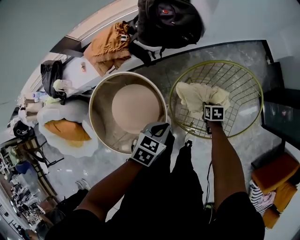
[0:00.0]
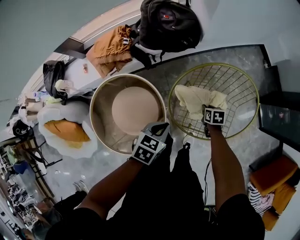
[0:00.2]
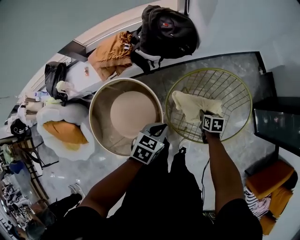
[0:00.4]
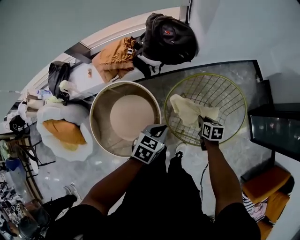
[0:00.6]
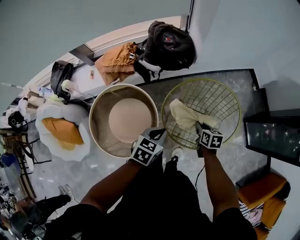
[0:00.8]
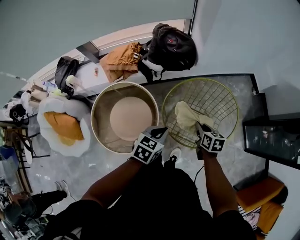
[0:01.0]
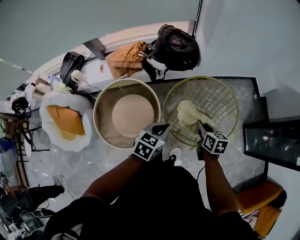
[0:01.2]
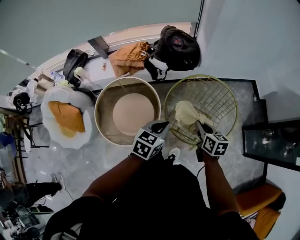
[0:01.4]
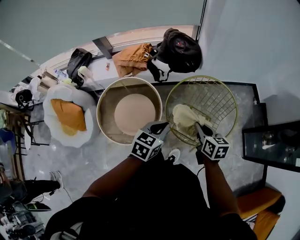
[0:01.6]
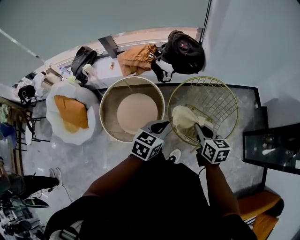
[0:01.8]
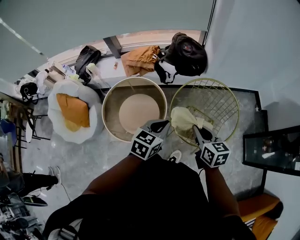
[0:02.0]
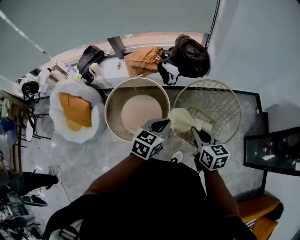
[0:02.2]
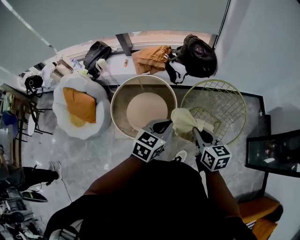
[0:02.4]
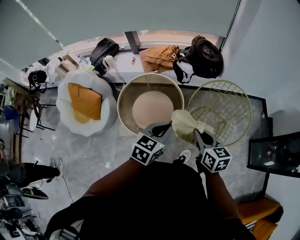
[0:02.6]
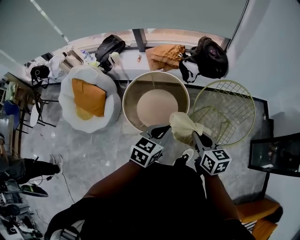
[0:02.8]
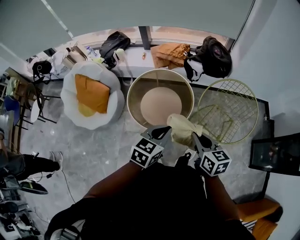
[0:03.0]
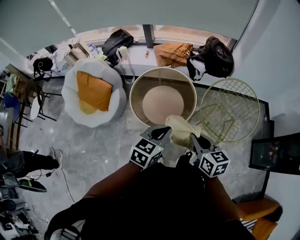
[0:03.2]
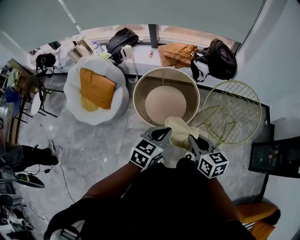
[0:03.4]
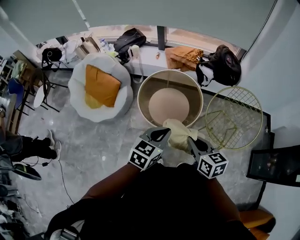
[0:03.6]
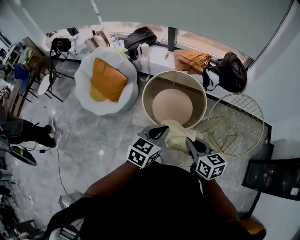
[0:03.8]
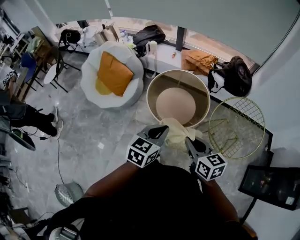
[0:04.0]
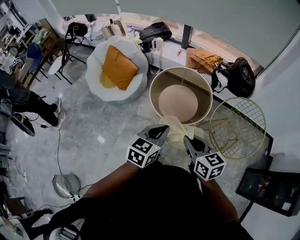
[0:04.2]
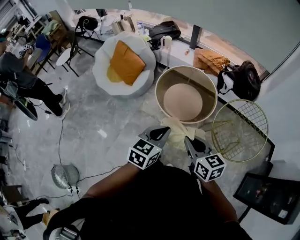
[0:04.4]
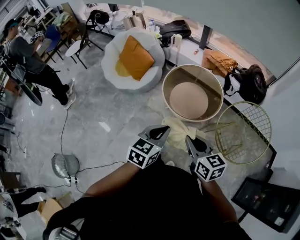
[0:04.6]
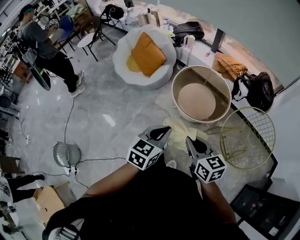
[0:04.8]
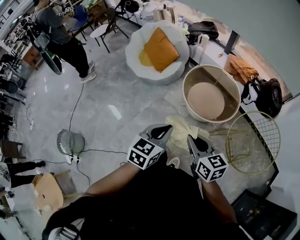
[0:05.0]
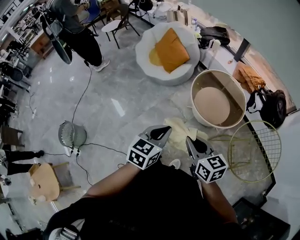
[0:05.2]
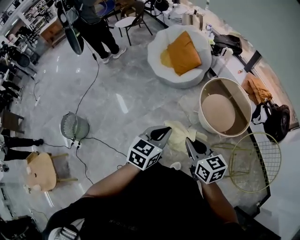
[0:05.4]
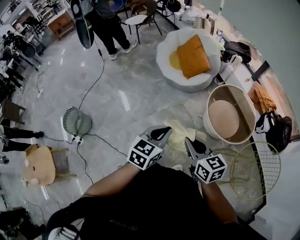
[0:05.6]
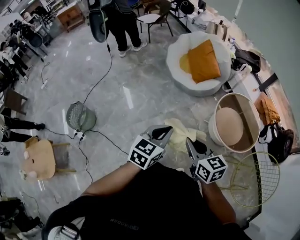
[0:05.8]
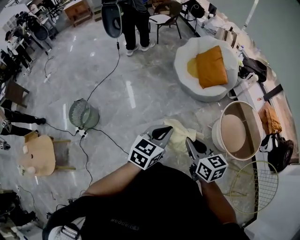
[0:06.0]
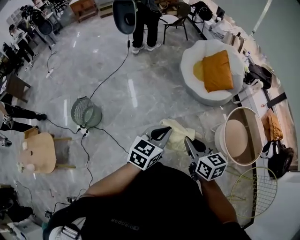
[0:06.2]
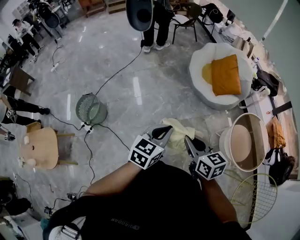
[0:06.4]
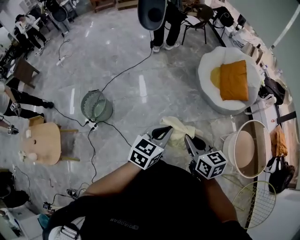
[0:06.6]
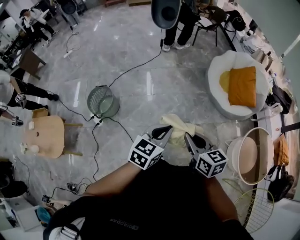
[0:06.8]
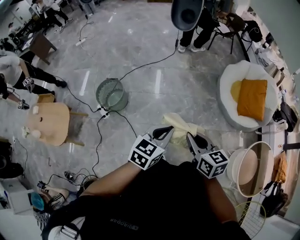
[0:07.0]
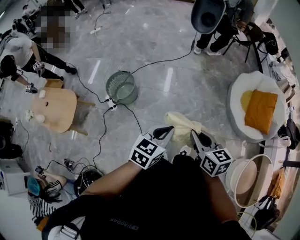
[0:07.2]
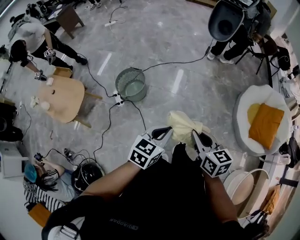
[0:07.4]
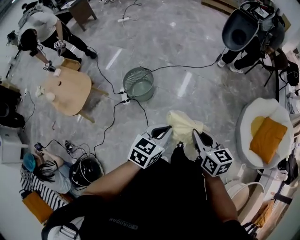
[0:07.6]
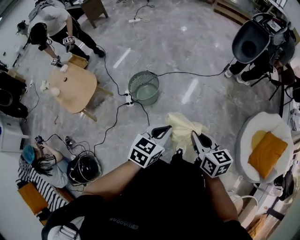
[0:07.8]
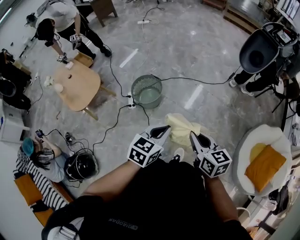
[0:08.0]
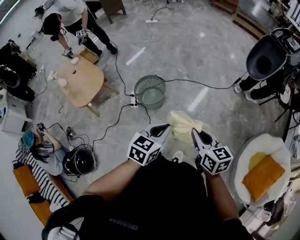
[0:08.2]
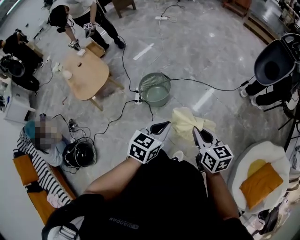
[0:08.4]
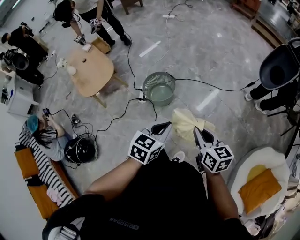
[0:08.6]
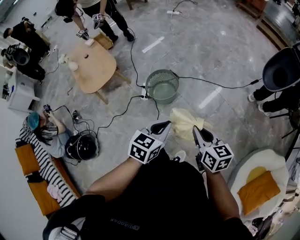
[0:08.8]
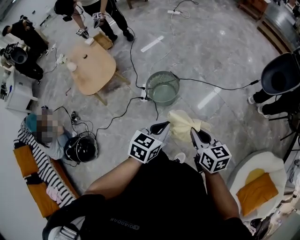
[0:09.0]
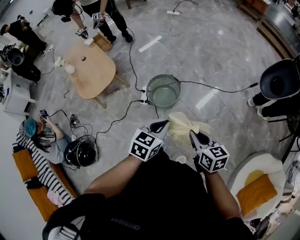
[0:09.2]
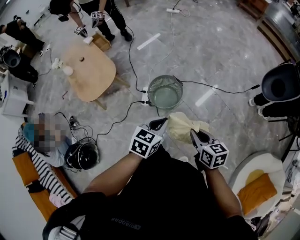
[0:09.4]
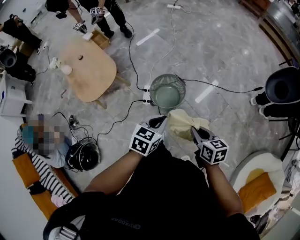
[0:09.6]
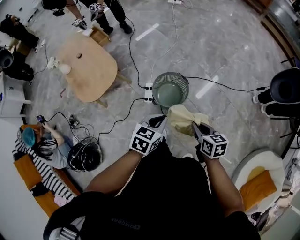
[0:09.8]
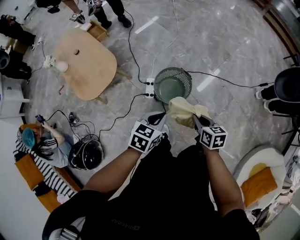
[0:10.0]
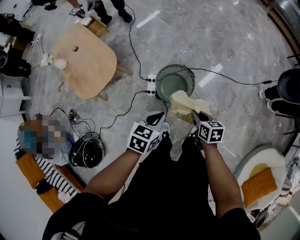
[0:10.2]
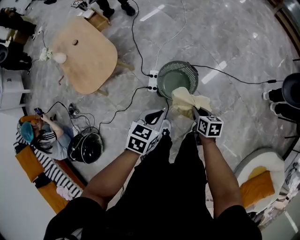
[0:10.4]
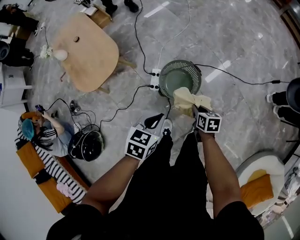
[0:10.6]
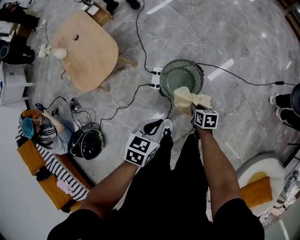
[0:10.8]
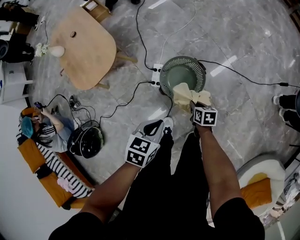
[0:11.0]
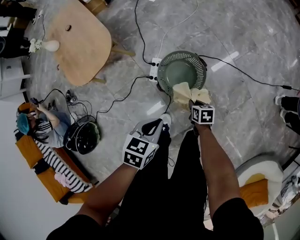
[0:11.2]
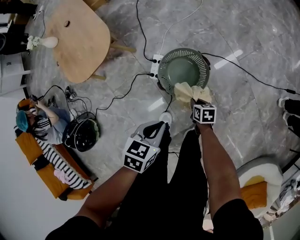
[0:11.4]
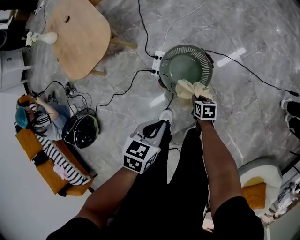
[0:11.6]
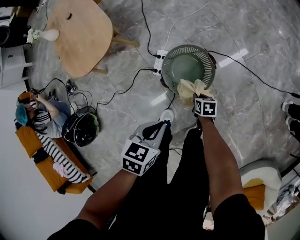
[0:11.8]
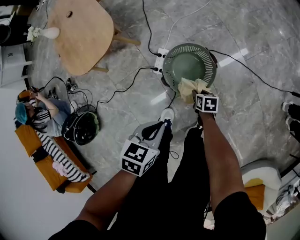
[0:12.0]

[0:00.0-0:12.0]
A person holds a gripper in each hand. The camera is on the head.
0:00.0 to 0:01.6: The left gripper is displaced upward and backward by about 20 cm, and changes its angle by approximately 20 degrees; the right gripper travels upward by some 35 cm, and tips its fingers upward by some 40 degrees.
0:01.6 to 0:03.0: Both grippers travel together to the left and backward, about 30 cm.
0:03.0 to 0:04.4: The right gripper ends up some 15 cm from where it was, and swivels some 30 degrees. The left gripper shifts by about 15 cm, and changes its angle by about 30 degrees.
0:04.4 to 0:06.0: The right gripper moves approximately 35 cm, and turns by about 40 degrees, while the left gripper shifts by roughly 40 cm, and rotates approximately 40 degrees.
0:06.0 to 0:07.6: Both grippers are carried roughly 40 cm. The left gripper changes its angle by roughly 40 degrees. Meanwhile the right gripper changes its angle by approximately 40 degrees.
0:07.6 to 0:09.0: The left gripper changes place by about 20 cm, and swivels approximately 30 degrees. Meanwhile the right gripper shifts by approximately 25 cm, and changes its angle by about 30 degrees.
0:09.0 to 0:10.4: The left gripper travels forward, to the left and downward by some 30 cm. Meanwhile the right gripper moves downward, forward and to the left, some 40 cm, and swivels about 30 degrees.
0:10.4 to 0:12.0: The right gripper goes roughly 25 cm downward. Meanwhile the left gripper moves downward, some 10 cm.

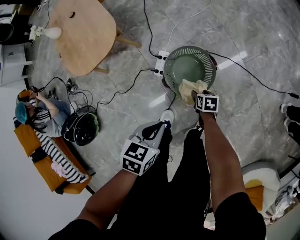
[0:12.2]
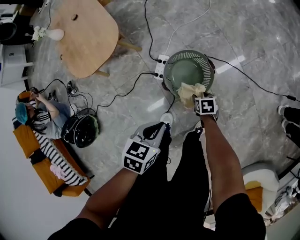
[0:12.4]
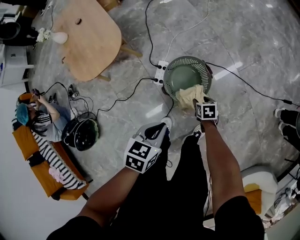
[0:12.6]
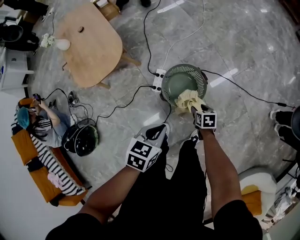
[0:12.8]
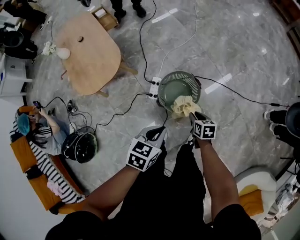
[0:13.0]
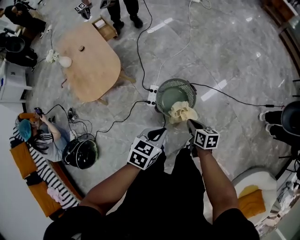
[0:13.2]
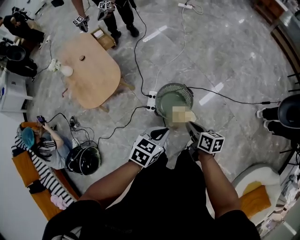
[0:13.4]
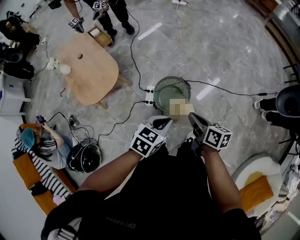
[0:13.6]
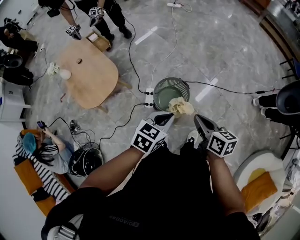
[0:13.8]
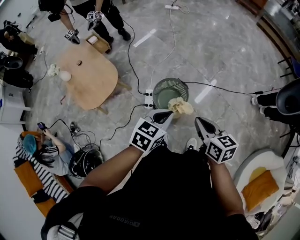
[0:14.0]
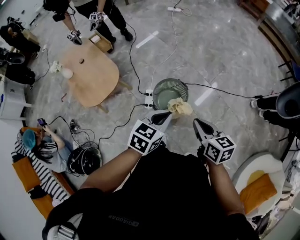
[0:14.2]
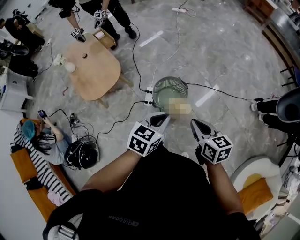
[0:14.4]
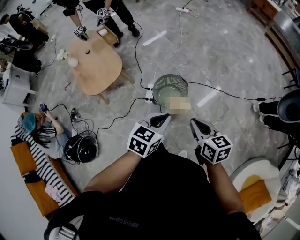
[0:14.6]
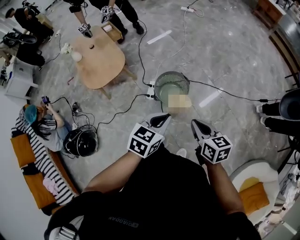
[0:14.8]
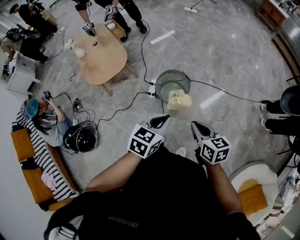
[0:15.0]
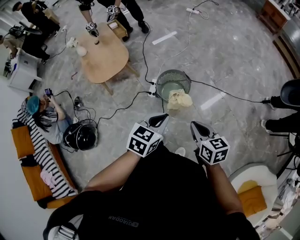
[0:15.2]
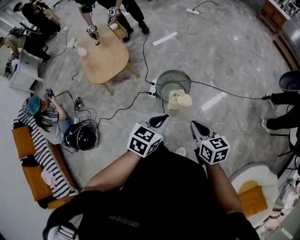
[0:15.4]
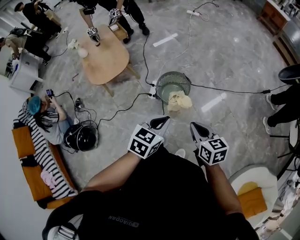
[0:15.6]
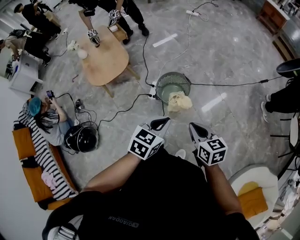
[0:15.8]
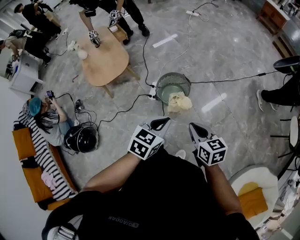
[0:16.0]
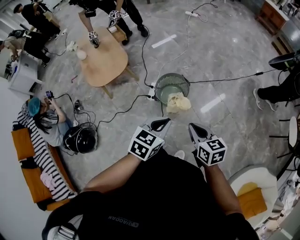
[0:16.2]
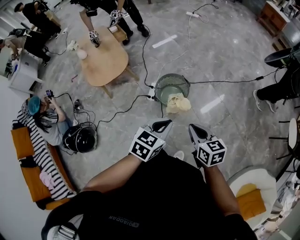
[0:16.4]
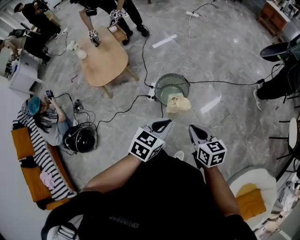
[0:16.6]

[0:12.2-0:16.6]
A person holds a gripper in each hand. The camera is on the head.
0:12.2 to 0:13.6: The right gripper shifts approximately 40 cm upward, tips its fingers upward by about 40 degrees, and closes its fingers. The left gripper heads upward, covering approximately 20 cm, and swivels about 30 degrees.
0:13.6 to 0:15.2: The left gripper heads backward, to the right and upward, covering some 15 cm, while the right gripper goes roughly 20 cm backward and to the right, and rotates some 30 degrees.
0:15.2 to 0:16.6: The grippers make only small movements.

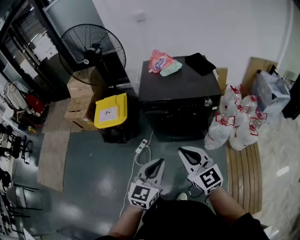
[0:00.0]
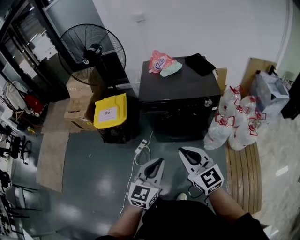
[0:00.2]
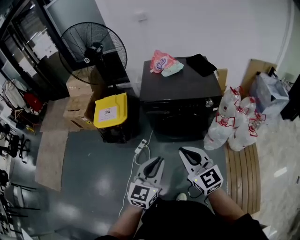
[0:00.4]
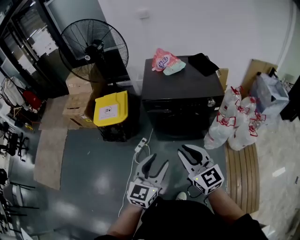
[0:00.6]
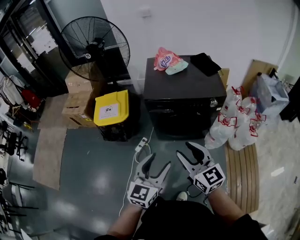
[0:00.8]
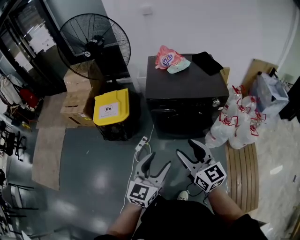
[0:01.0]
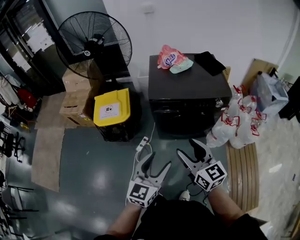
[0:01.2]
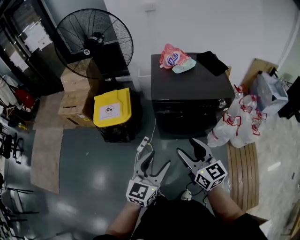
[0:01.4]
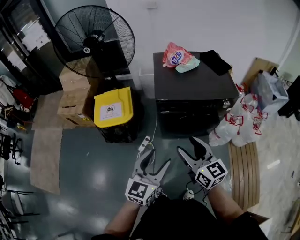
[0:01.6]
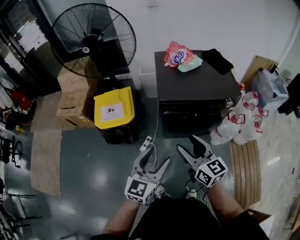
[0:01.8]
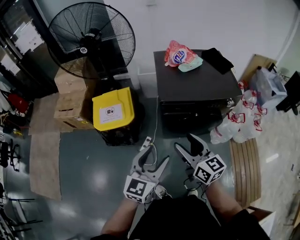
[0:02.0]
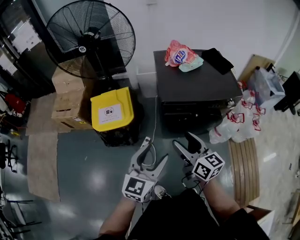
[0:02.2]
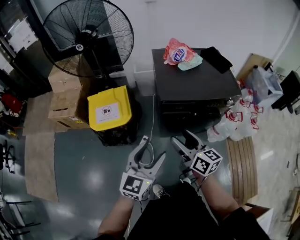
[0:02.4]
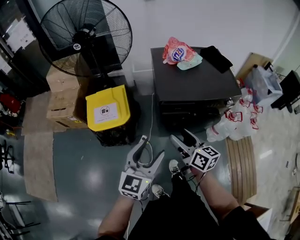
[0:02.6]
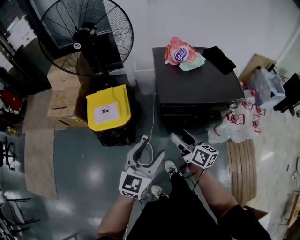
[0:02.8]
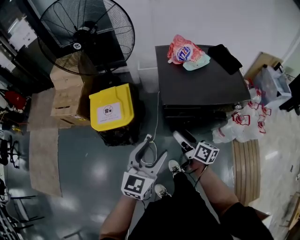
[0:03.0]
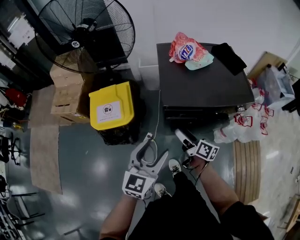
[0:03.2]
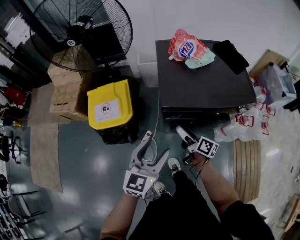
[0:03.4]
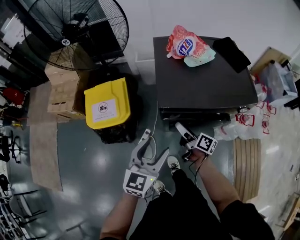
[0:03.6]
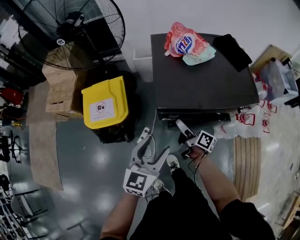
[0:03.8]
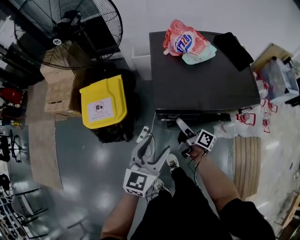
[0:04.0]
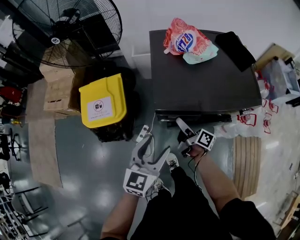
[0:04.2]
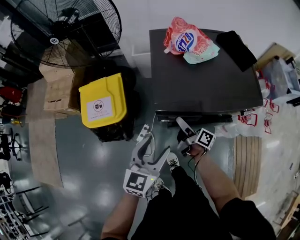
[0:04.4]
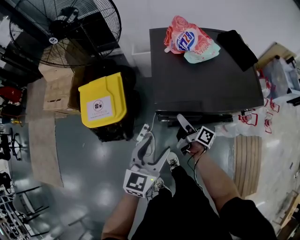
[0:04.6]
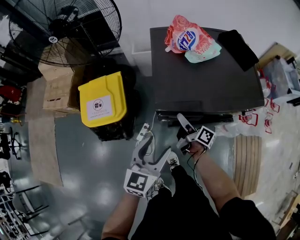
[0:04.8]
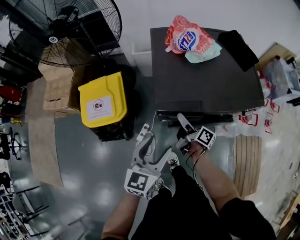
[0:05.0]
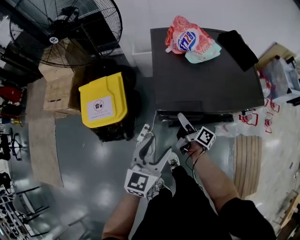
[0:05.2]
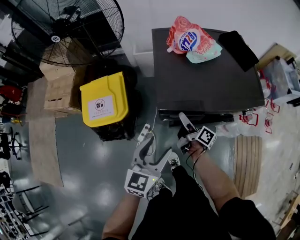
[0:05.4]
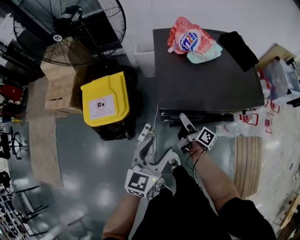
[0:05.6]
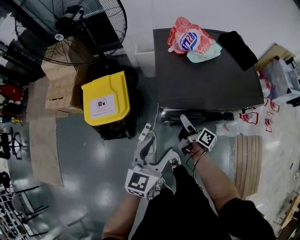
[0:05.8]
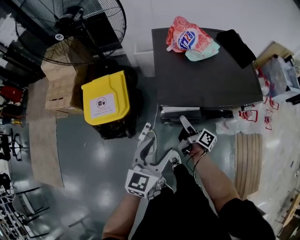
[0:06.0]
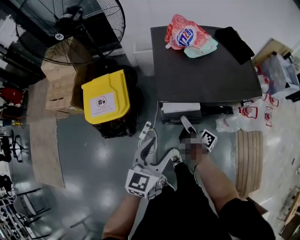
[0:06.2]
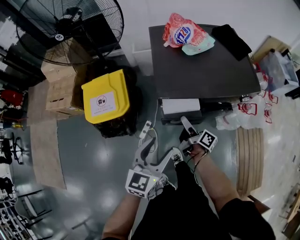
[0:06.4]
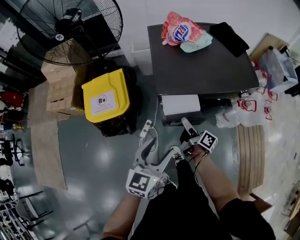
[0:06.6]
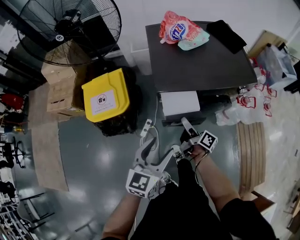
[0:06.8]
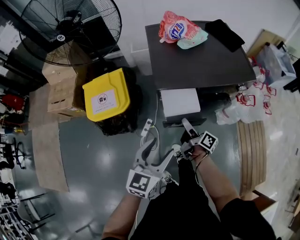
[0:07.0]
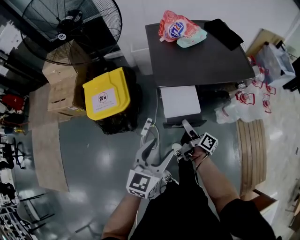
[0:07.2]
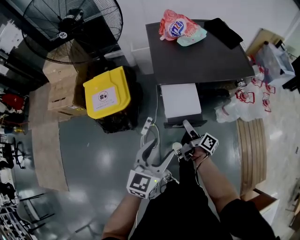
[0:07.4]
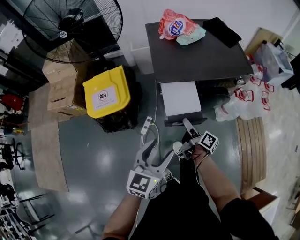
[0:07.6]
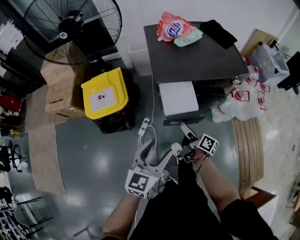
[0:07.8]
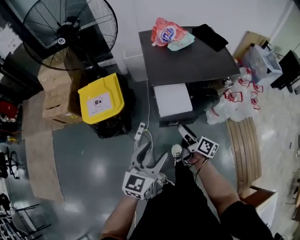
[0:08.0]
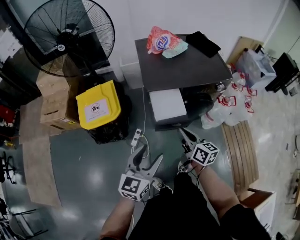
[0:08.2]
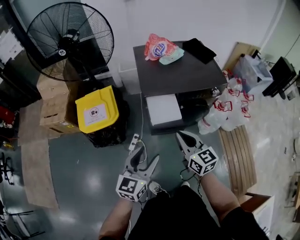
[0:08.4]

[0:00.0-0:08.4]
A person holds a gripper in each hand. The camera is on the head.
0:00.0 to 0:01.4: The two grippers go some 15 cm to the left and forward. The left gripper opens; the right gripper opens.
0:01.4 to 0:02.8: The left gripper shifts roughly 15 cm forward and to the left. Meanwhile the right gripper goes about 20 cm forward, to the left and downward, and rotates about 30 degrees.
0:02.8 to 0:04.2: The right gripper moves downward and forward, roughly 20 cm, and swivels roughly 30 degrees. Meanwhile the left gripper moves forward, downward and to the right, some 15 cm.
0:04.2 to 0:05.6: The grippers make only small movements.
0:05.6 to 0:07.0: The grippers both shift backward by some 15 cm.
0:07.0 to 0:08.4: The right gripper travels upward and backward by some 25 cm, twists approximately 70 degrees counterclockwise, seen from behind, and closes up; the left gripper travels backward by about 5 cm.
